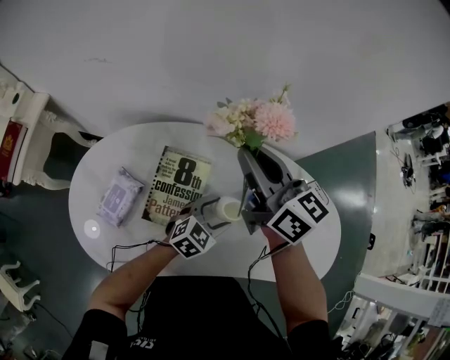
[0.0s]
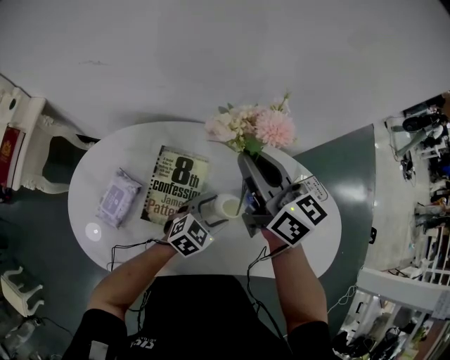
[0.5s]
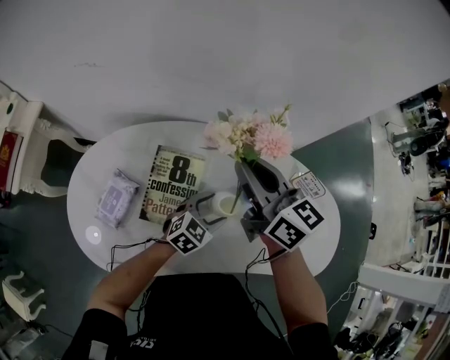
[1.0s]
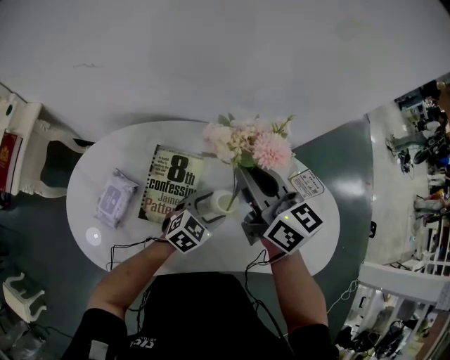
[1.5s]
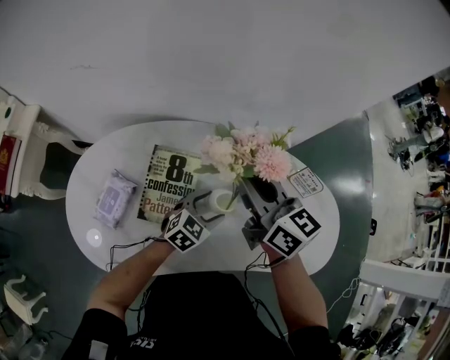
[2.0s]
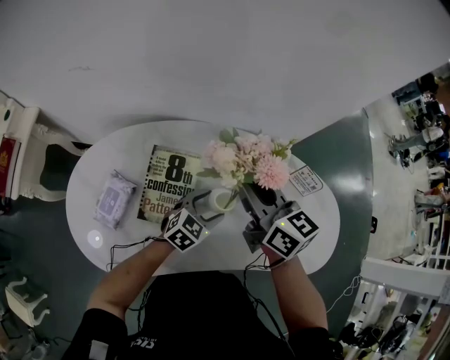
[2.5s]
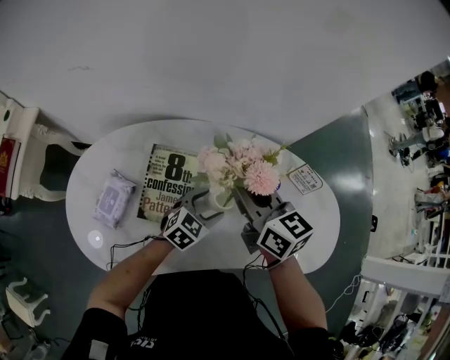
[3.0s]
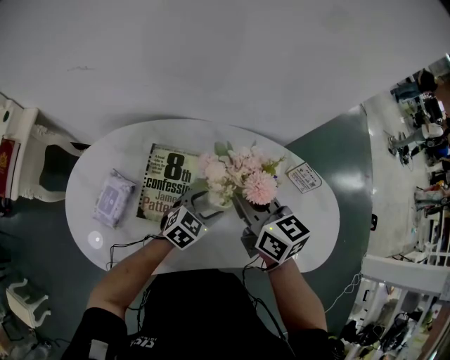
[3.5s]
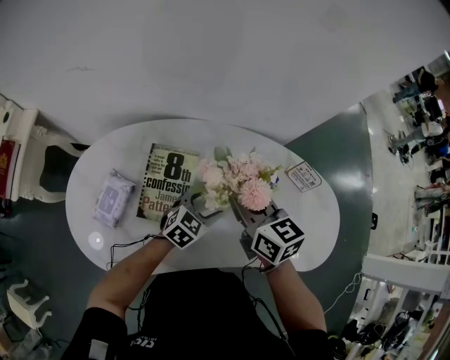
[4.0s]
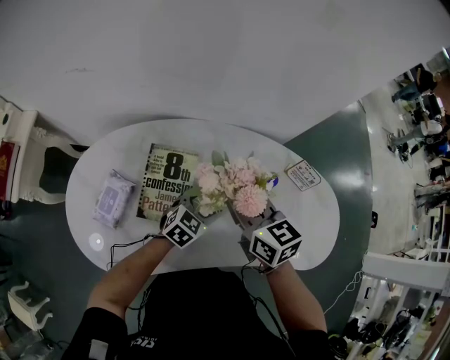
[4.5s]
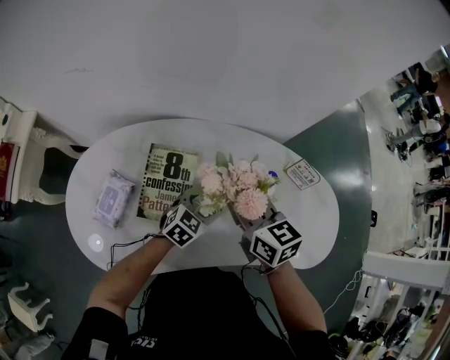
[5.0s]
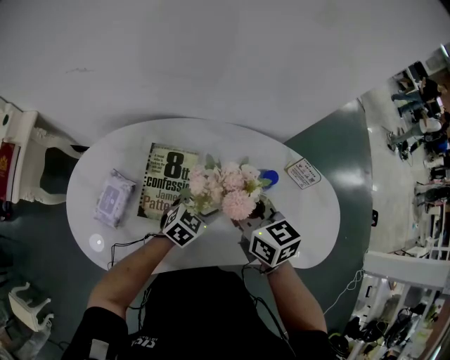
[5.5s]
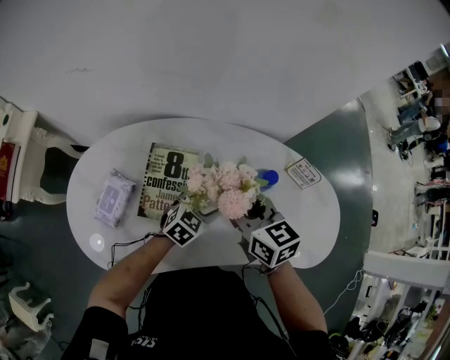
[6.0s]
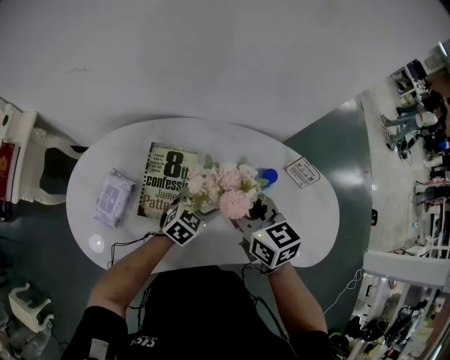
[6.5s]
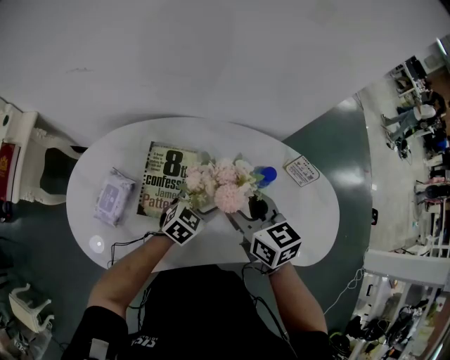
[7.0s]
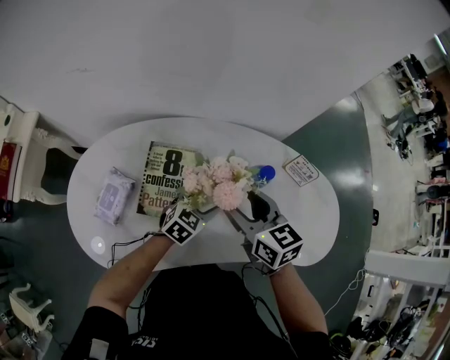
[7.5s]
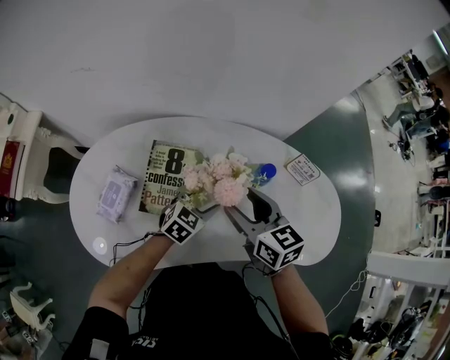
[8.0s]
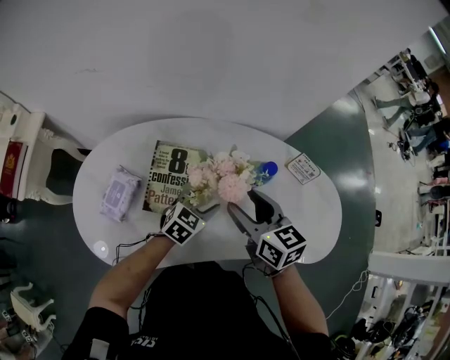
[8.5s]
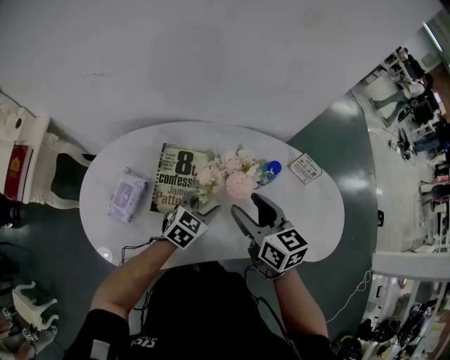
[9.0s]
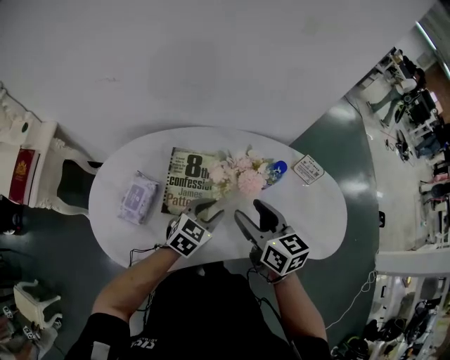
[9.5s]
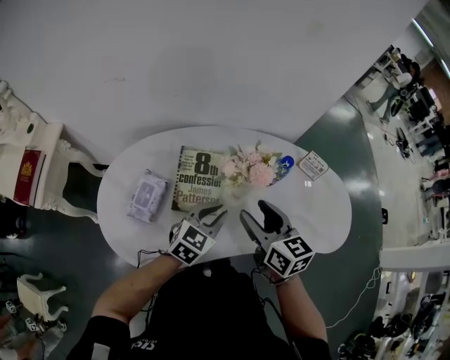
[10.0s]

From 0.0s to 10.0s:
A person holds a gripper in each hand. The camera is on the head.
From 0.0s to 2.0s: The right gripper moves about 10 cm.
From 2.0s to 4.0s: The right gripper goes about 5 cm downward.
From 4.0s to 6.0s: The right gripper opens its fingers.
From 6.0s to 8.0s: The right gripper opens its fingers.
From 8.0s to 10.0s: The right gripper goes approximately 10 cm backward, while the left gripper travels upward, backward and to the left by about 15 cm, and closes.

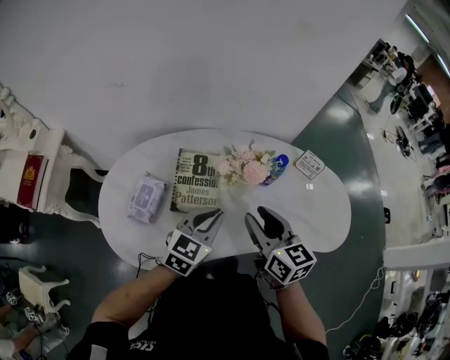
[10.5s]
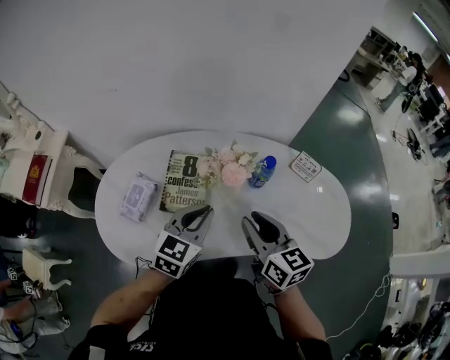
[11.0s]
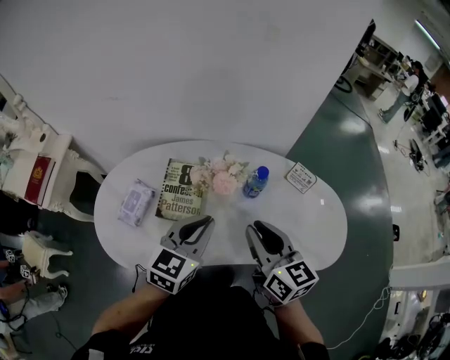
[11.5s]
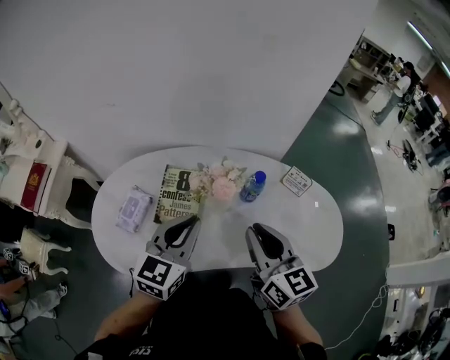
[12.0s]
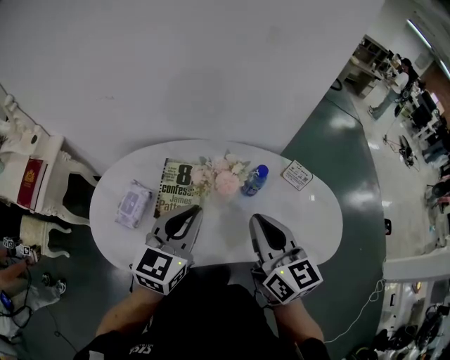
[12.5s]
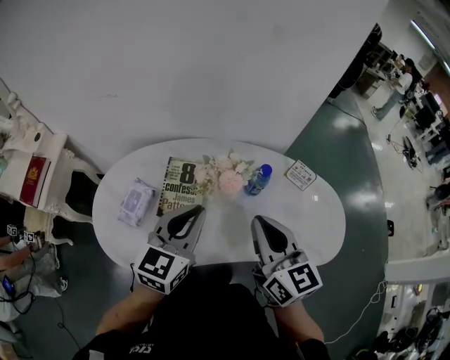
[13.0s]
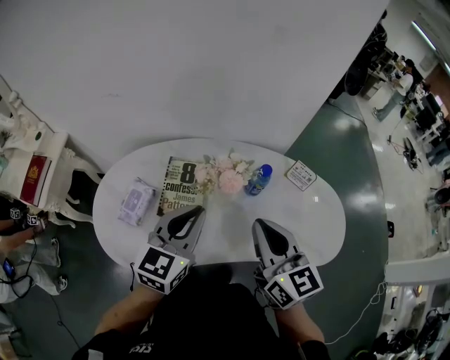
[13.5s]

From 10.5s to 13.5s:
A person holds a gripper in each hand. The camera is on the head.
From 10.5s to 12.0s: The left gripper is displaced upward by some 10 cm; the right gripper moves upward and to the right, about 10 cm, and closes up.
From 12.0s to 13.5s: The grippers move only a little.

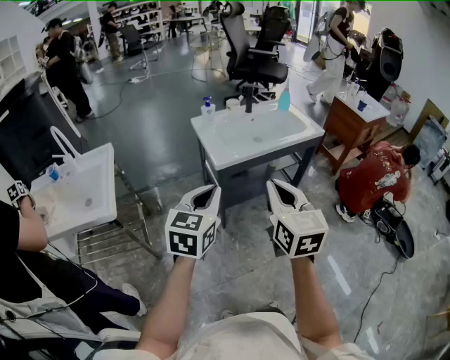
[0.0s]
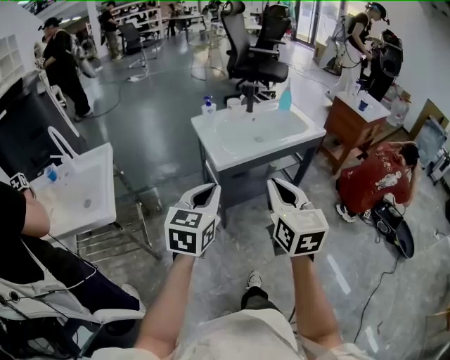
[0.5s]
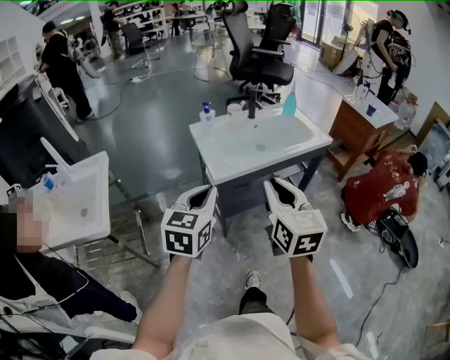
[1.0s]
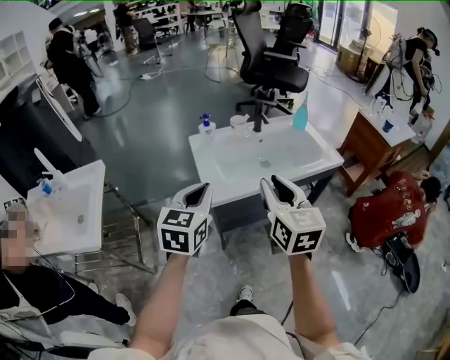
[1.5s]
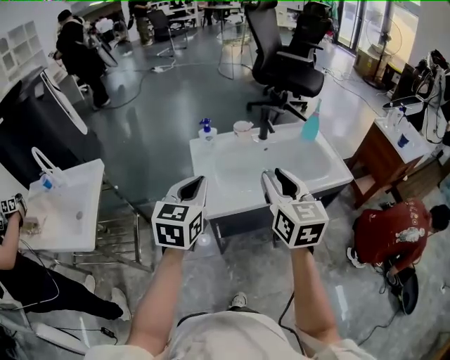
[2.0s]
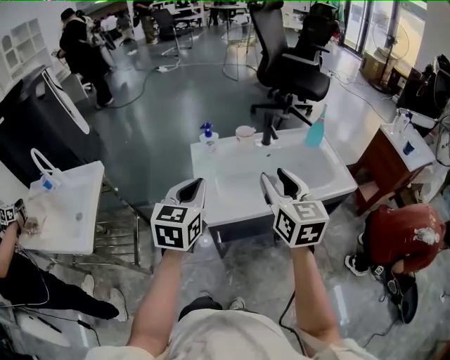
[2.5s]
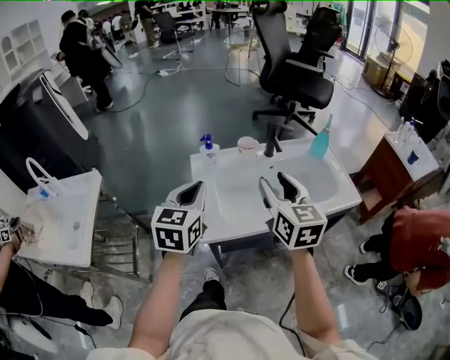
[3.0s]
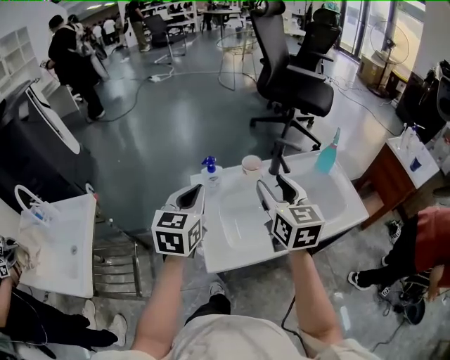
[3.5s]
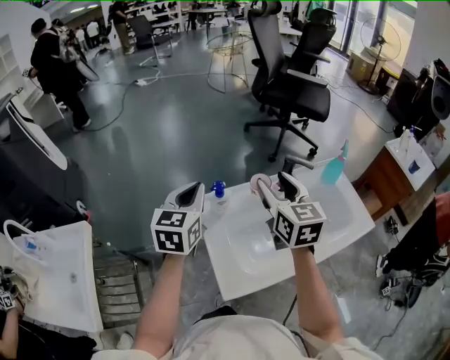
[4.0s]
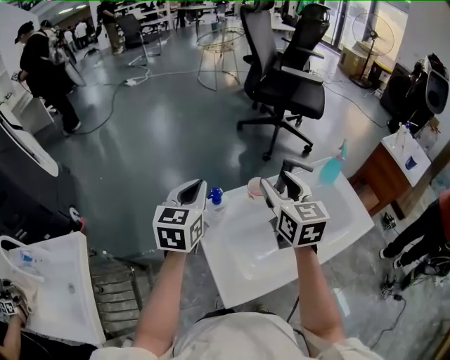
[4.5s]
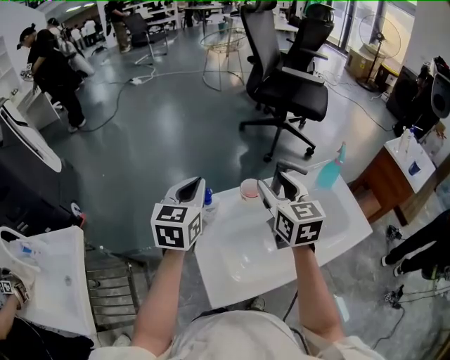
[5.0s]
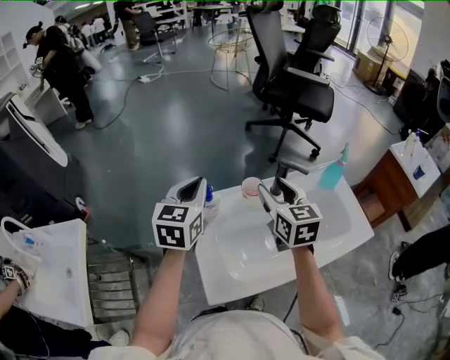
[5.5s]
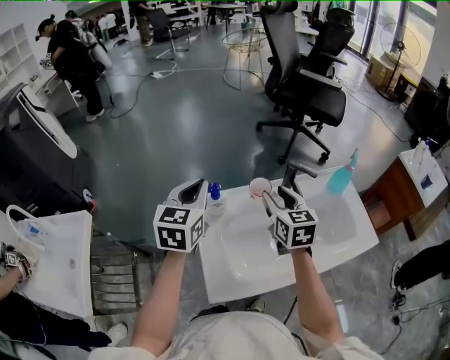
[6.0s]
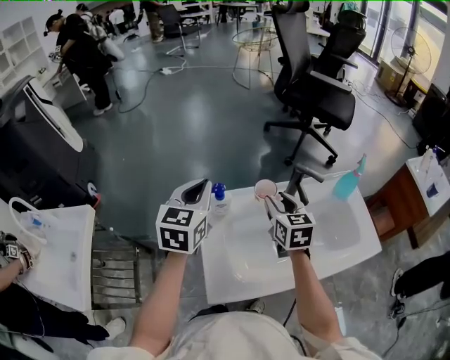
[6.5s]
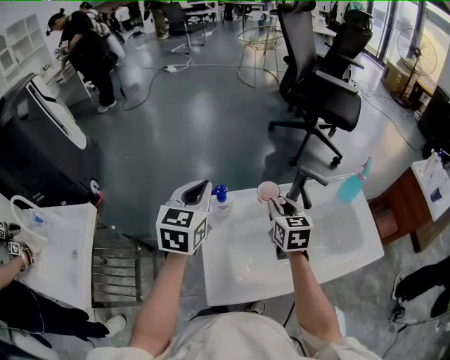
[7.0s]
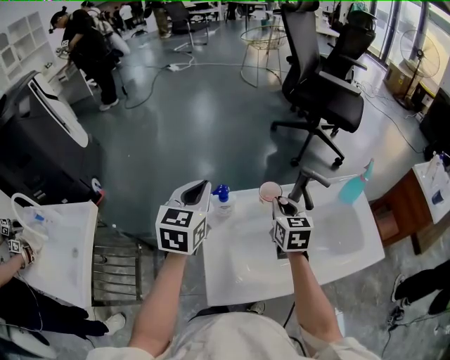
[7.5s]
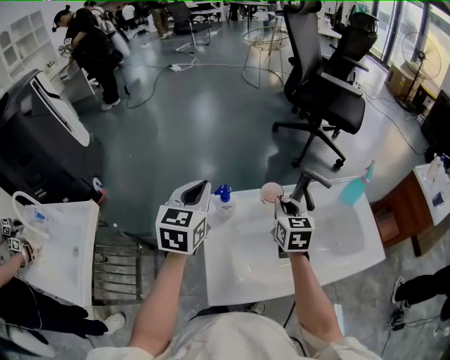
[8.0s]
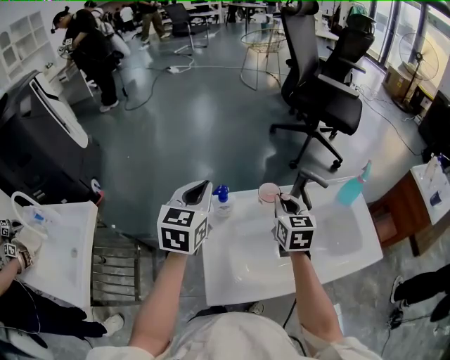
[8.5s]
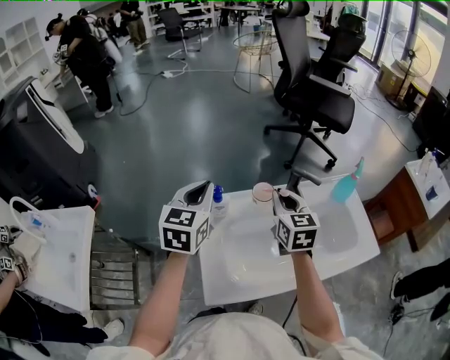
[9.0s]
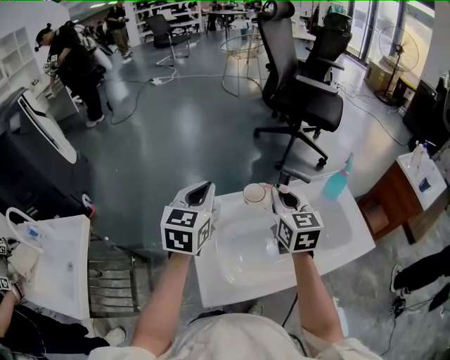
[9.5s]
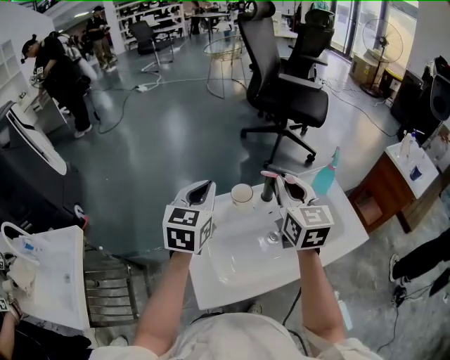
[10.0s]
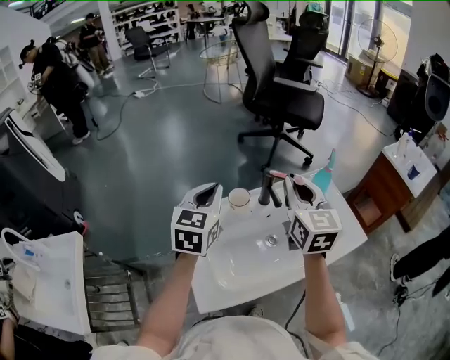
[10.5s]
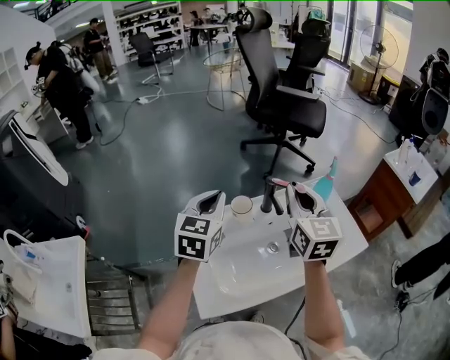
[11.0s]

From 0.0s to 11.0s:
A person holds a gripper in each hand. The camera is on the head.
From 0.0s to 2.0s: The grippers both shift forward by roughly 30 cm. The right gripper opens.
From 2.0s to 3.5s: The two grippers go approximately 20 cm forward. The right gripper opens its fingers.
From 3.5s to 5.5s: The grippers both shift forward by about 15 cm.
From 5.5s to 7.5s: The right gripper is displaced downward by roughly 10 cm, and closes up.
From 7.5s to 9.0s: The right gripper heads upward, covering approximately 5 cm.
From 9.0s to 11.0s: The right gripper goes roughly 15 cm upward and to the right. The left gripper goes some 10 cm to the right.

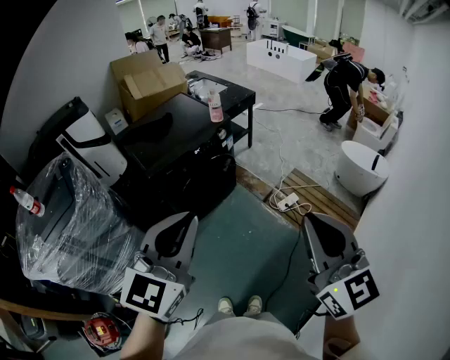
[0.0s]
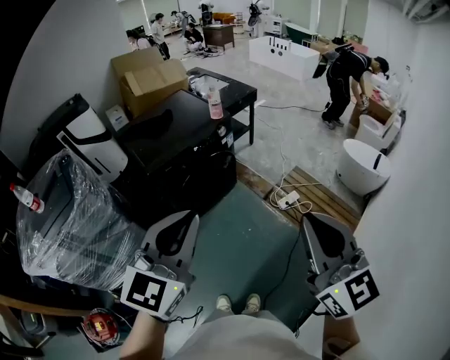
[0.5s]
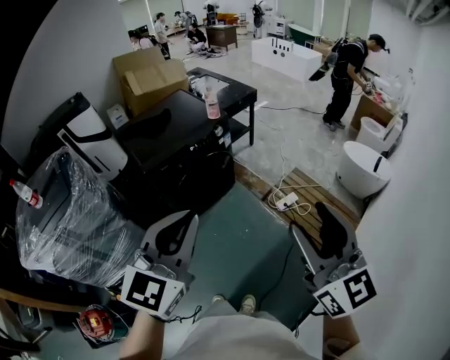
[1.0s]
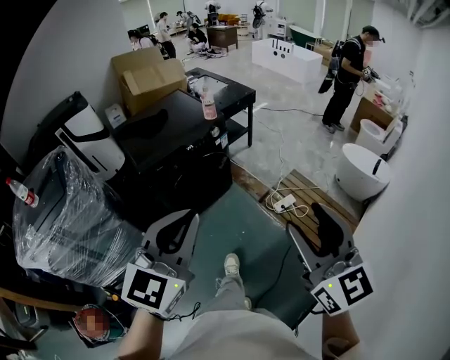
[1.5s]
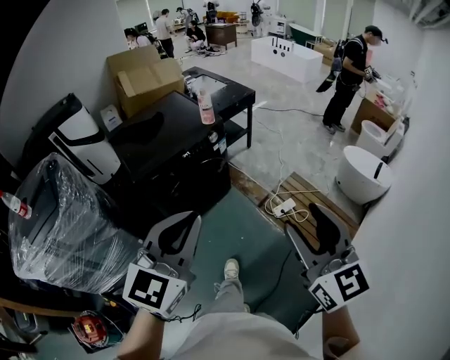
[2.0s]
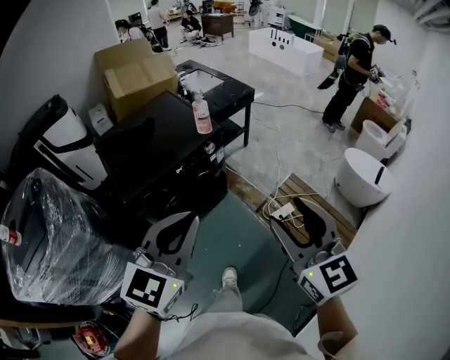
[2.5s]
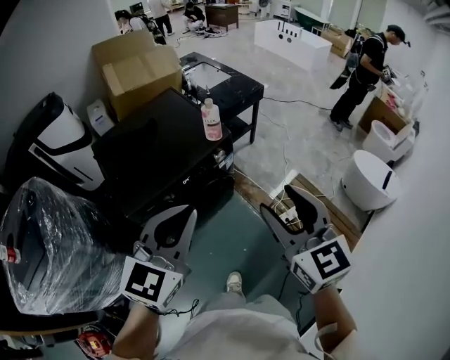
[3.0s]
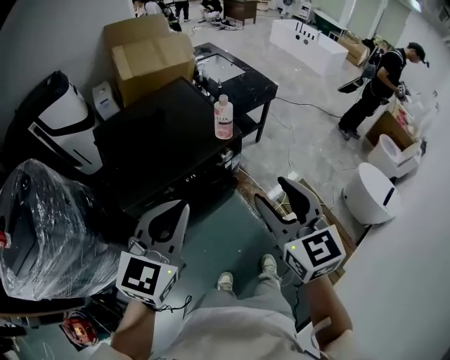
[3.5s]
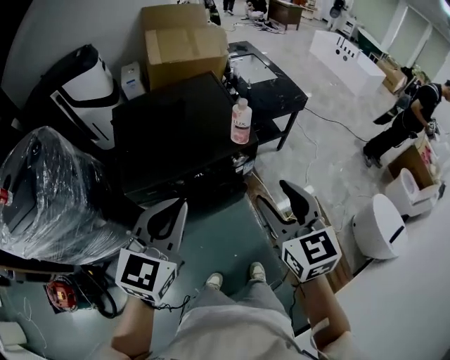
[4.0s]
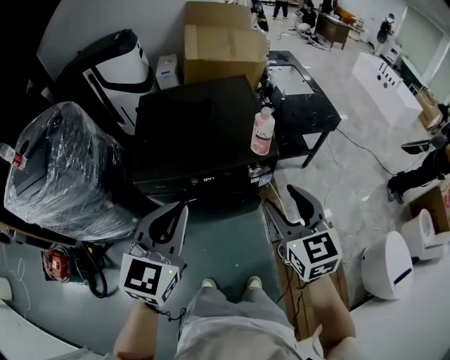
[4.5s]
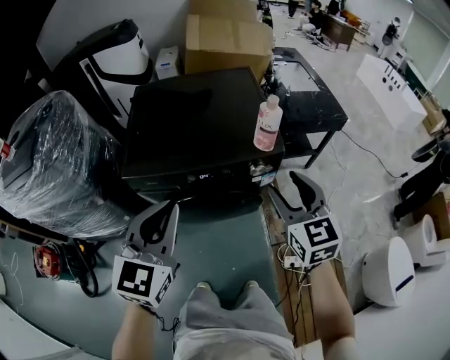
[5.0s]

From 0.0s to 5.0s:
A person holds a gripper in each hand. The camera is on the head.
From 0.0s to 2.5s: The two grippers go about 25 cm forward. The right gripper opens up.
From 2.5s to 5.0s: The right gripper ends up some 40 cm from where it was, and rotates approximately 30 degrees; the left gripper ends up some 25 cm from where it was, and rotates some 40 degrees.
